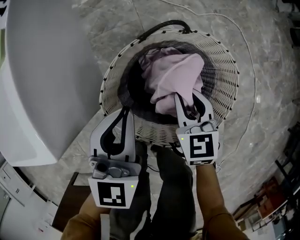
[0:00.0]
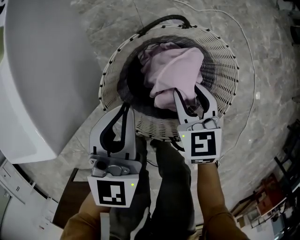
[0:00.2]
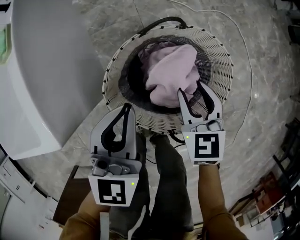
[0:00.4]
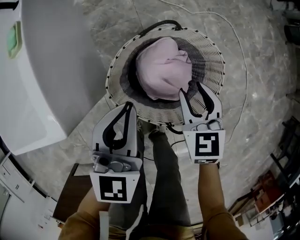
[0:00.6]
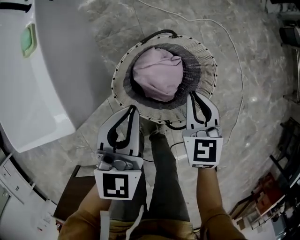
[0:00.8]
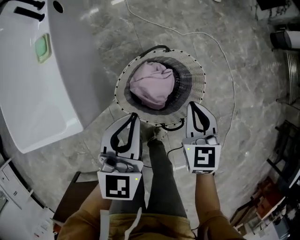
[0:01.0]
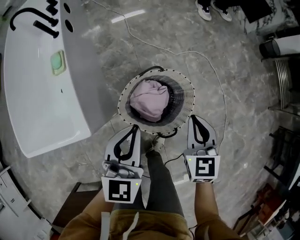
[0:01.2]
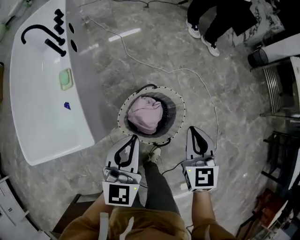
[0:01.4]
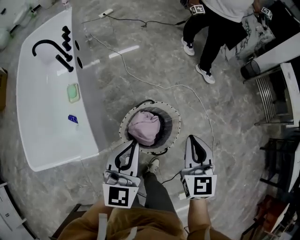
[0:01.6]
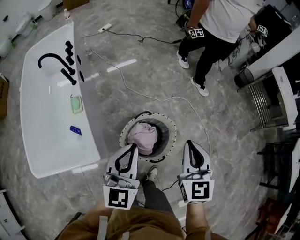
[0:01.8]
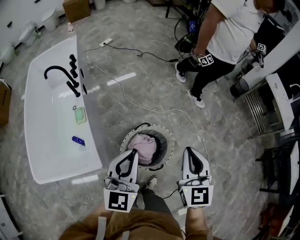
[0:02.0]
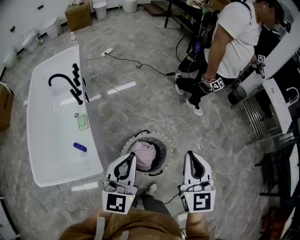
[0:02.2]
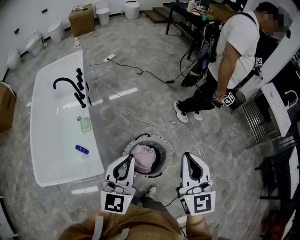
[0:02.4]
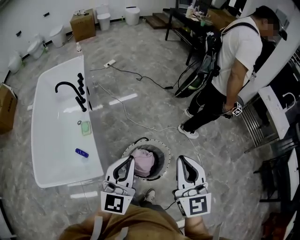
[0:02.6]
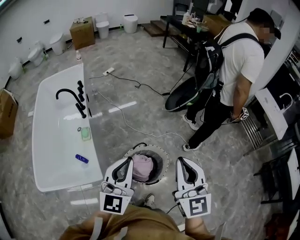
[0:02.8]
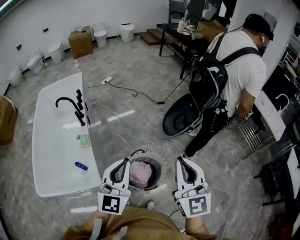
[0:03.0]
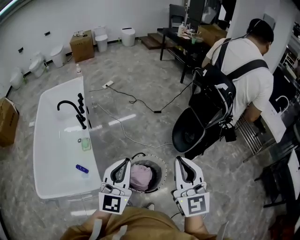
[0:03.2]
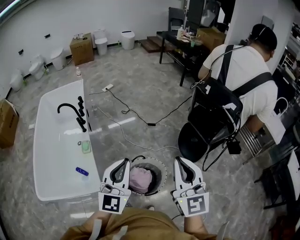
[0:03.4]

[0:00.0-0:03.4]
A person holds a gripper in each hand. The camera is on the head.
0:00.0 to 0:01.6: Both grippers move upward, about 40 cm. The right gripper swivels roughly 20 degrees.
0:01.6 to 0:03.4: The two grippers go roughly 25 cm upward. The right gripper angles its fingers upward, by approximately 30 degrees.

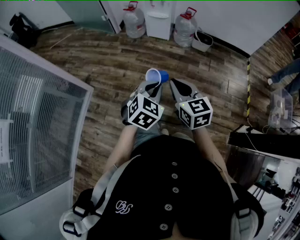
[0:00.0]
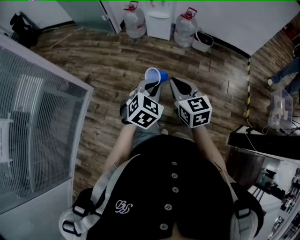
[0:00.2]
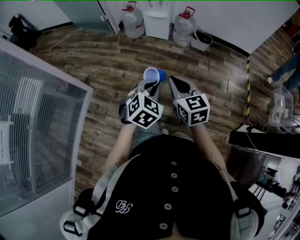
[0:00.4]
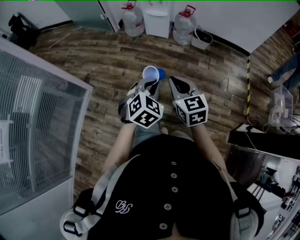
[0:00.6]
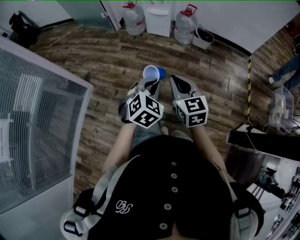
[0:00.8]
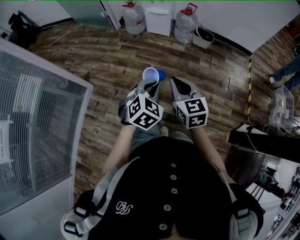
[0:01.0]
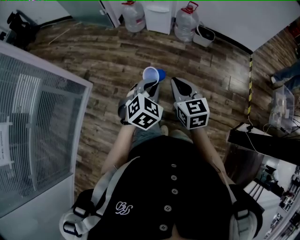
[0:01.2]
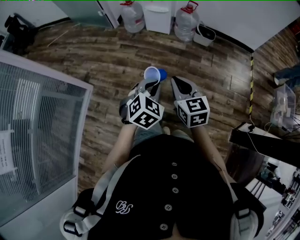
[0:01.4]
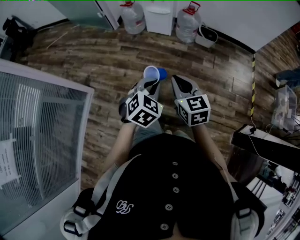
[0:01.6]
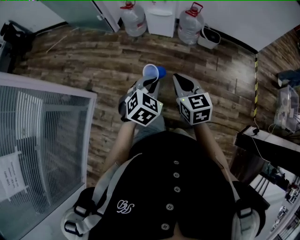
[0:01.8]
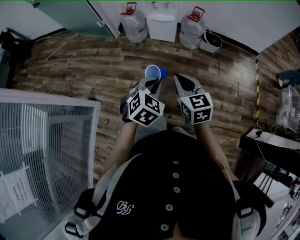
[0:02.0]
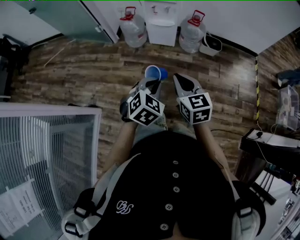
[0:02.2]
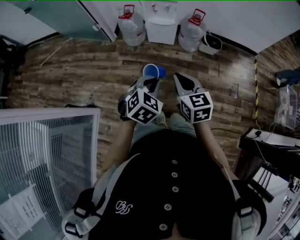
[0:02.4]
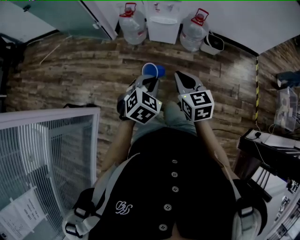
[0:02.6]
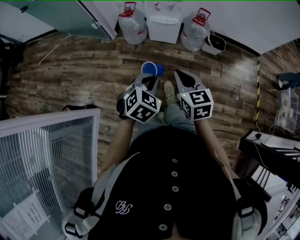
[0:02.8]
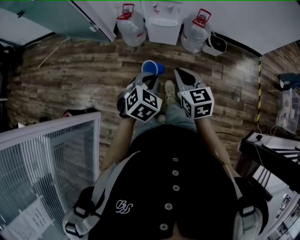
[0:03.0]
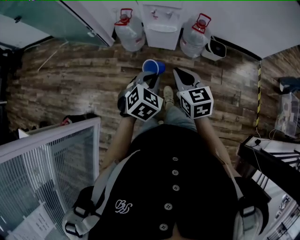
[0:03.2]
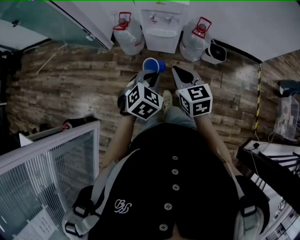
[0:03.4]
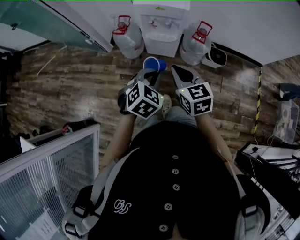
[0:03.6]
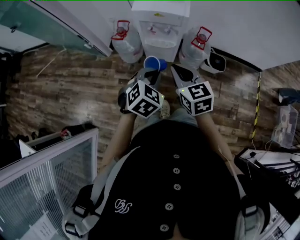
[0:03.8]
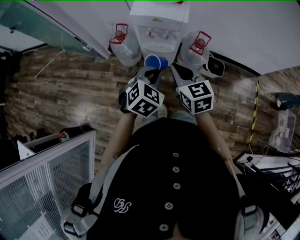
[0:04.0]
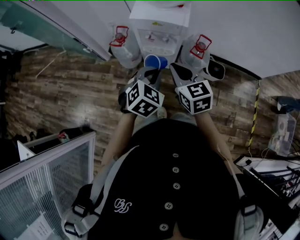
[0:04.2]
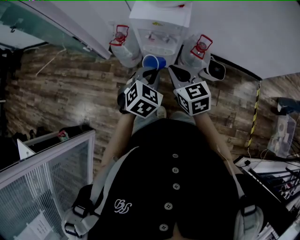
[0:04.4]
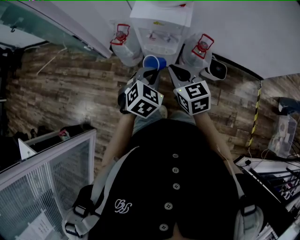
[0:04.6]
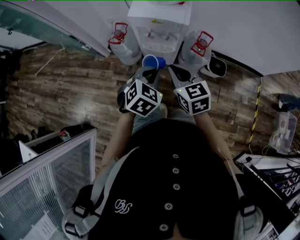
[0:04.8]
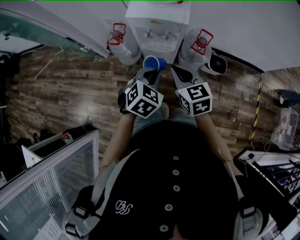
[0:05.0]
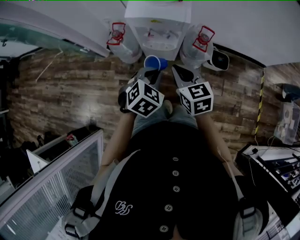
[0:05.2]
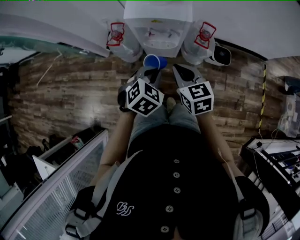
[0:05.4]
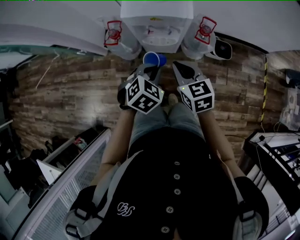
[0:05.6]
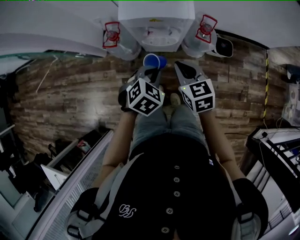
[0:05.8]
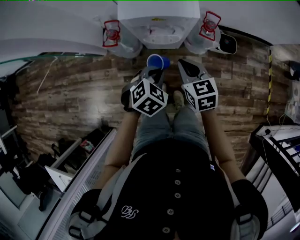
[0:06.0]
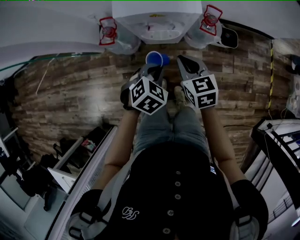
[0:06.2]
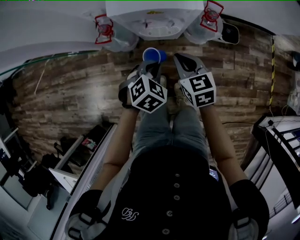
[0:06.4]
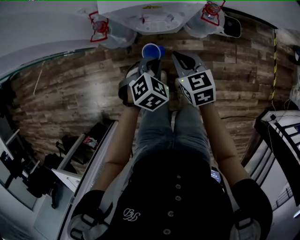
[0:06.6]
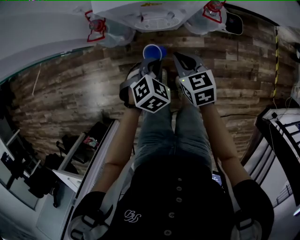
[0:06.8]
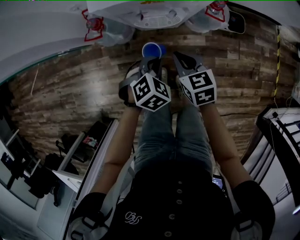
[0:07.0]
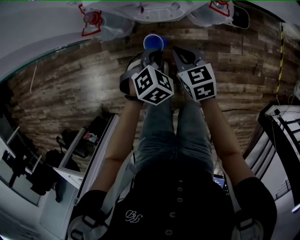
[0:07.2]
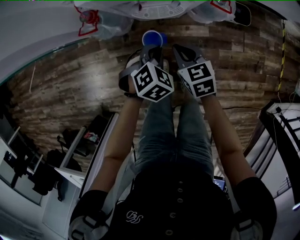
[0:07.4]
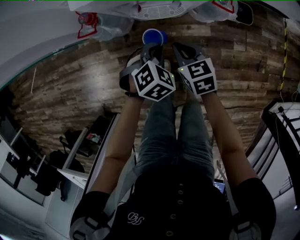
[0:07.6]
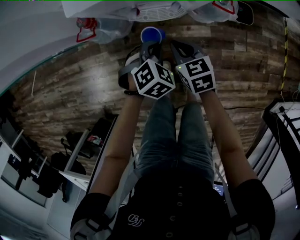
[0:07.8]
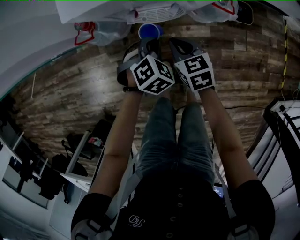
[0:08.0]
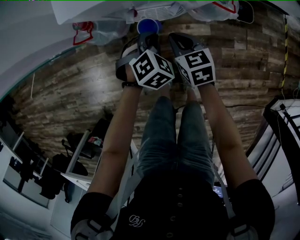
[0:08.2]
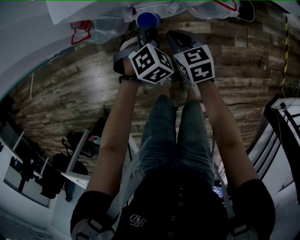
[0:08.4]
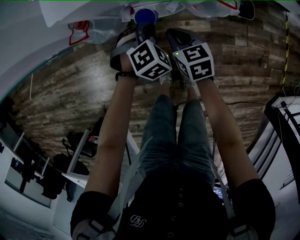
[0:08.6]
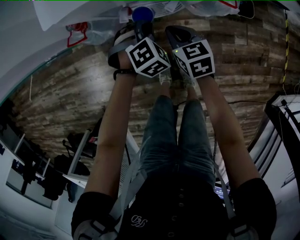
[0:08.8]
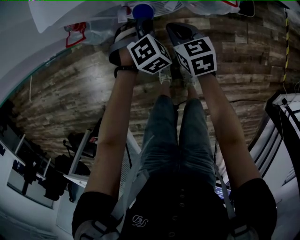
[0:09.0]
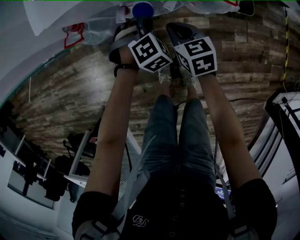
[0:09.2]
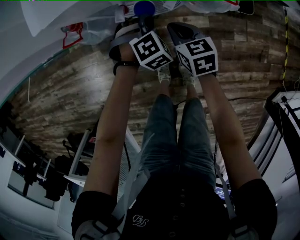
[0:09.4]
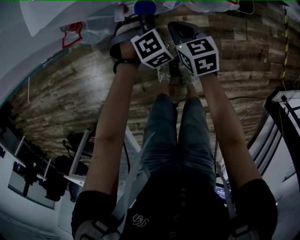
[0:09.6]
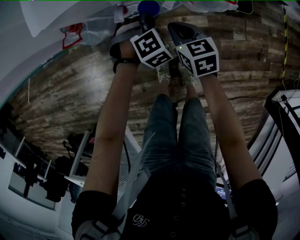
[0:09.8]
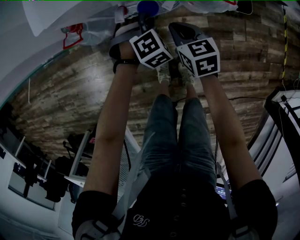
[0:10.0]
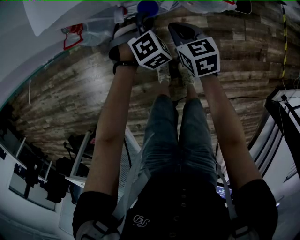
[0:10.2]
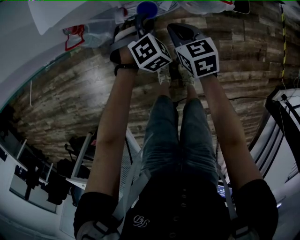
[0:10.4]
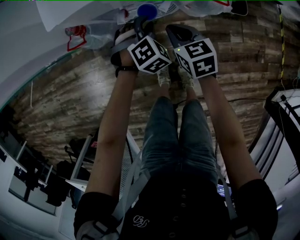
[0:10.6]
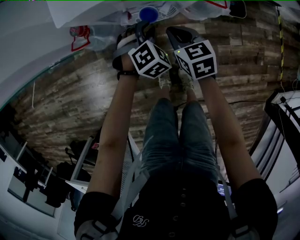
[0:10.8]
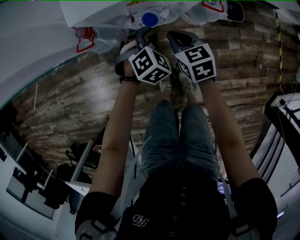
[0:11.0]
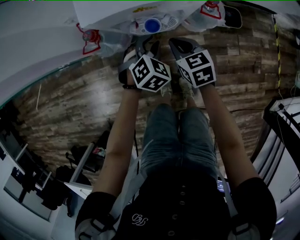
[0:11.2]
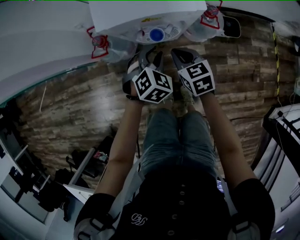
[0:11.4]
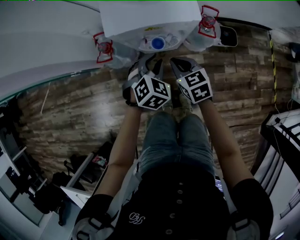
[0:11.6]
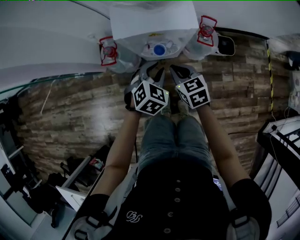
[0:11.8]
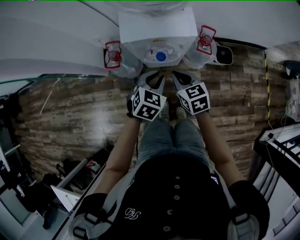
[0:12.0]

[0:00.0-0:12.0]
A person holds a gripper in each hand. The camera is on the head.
0:00.0 to 0:01.6: The grippers both shift forward by about 10 cm.
0:01.6 to 0:03.0: The grippers both shift forward by some 30 cm.
0:03.0 to 0:04.4: The grippers both shift forward by approximately 25 cm.
0:04.4 to 0:06.0: Both grippers move downward and forward, roughly 15 cm. The left gripper turns by about 20 degrees.
0:06.0 to 0:07.6: Both grippers move downward, about 20 cm.
0:07.6 to 0:09.0: The left gripper goes roughly 10 cm forward and downward; the right gripper moves forward, some 5 cm.
0:09.0 to 0:10.4: The left gripper opens.
0:10.4 to 0:12.0: The grippers both shift upward by approximately 25 cm. The left gripper turns by some 40 degrees.

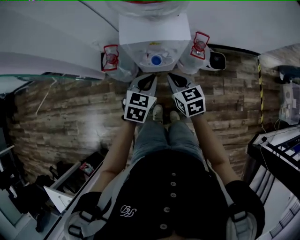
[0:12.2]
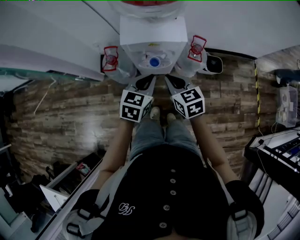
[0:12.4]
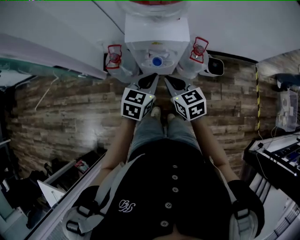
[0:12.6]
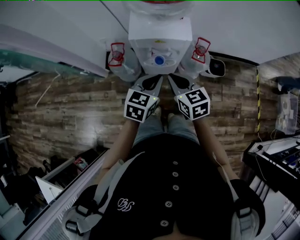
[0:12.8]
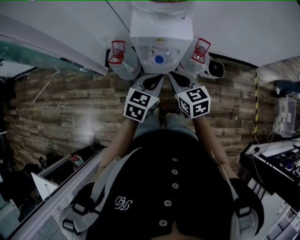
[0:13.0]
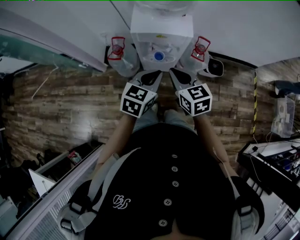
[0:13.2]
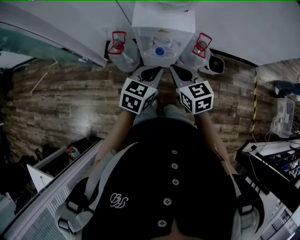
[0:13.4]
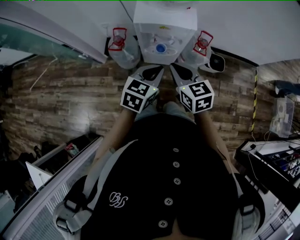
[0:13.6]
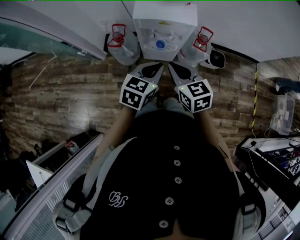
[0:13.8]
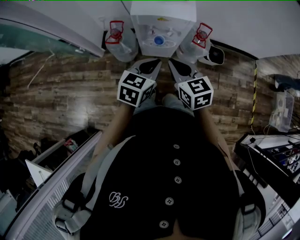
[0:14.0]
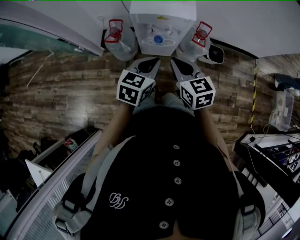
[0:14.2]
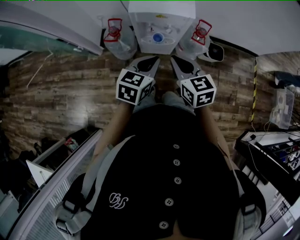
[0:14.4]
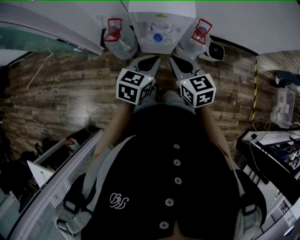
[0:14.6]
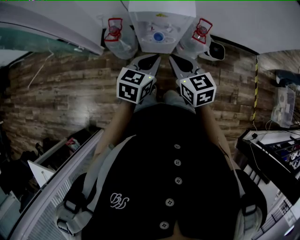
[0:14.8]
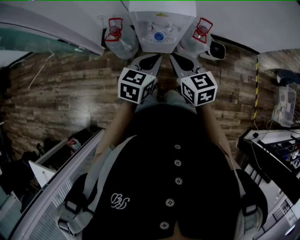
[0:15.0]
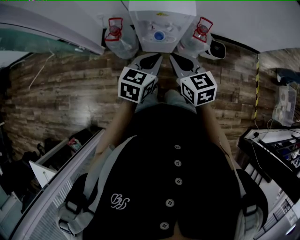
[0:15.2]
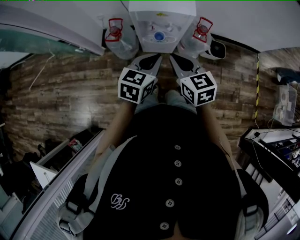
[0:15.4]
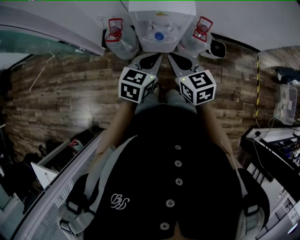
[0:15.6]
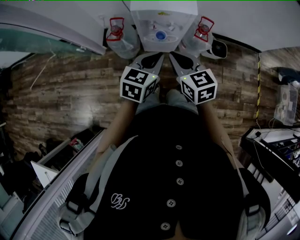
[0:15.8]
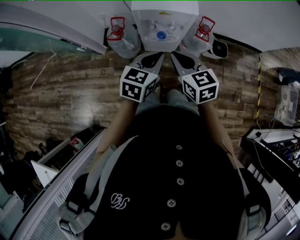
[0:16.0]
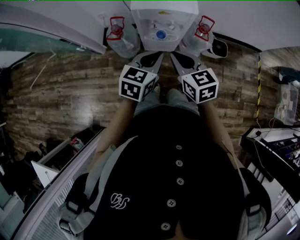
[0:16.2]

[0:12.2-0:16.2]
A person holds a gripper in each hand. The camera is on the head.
0:12.2 to 0:13.6: The right gripper goes roughly 10 cm upward and backward. The left gripper moves backward and upward, about 10 cm.
0:13.6 to 0:14.8: The grippers make only small movements.
0:14.8 to 0:16.2: The two grippers keep their place.

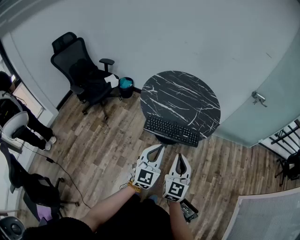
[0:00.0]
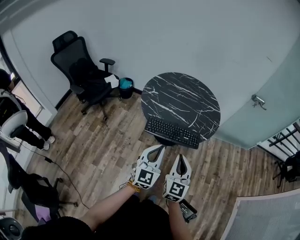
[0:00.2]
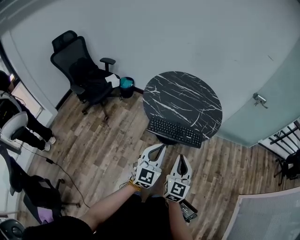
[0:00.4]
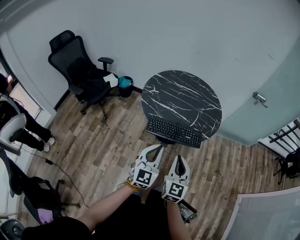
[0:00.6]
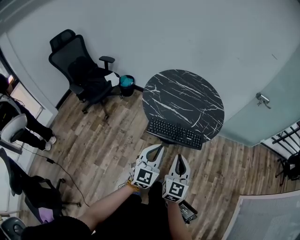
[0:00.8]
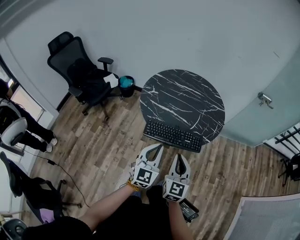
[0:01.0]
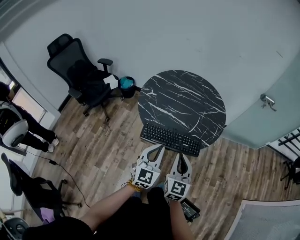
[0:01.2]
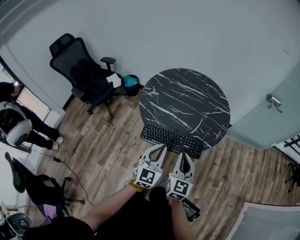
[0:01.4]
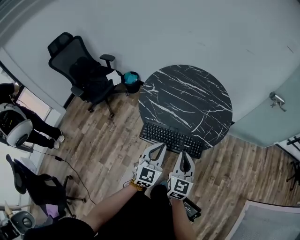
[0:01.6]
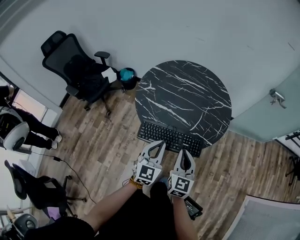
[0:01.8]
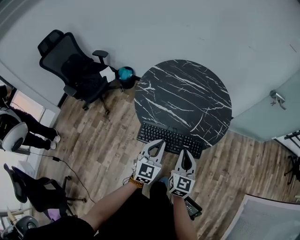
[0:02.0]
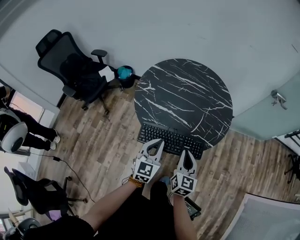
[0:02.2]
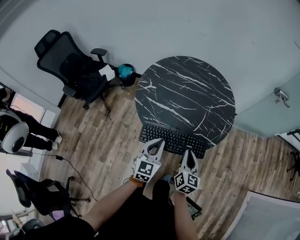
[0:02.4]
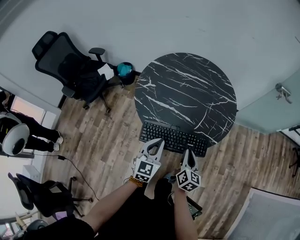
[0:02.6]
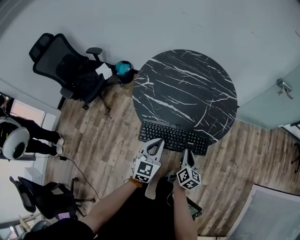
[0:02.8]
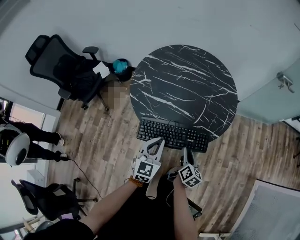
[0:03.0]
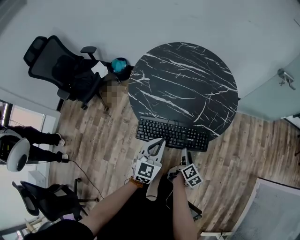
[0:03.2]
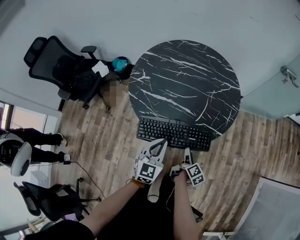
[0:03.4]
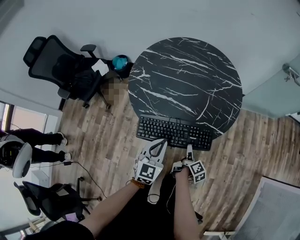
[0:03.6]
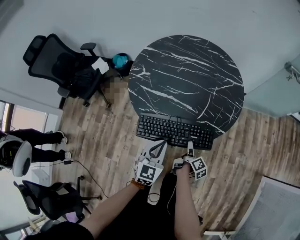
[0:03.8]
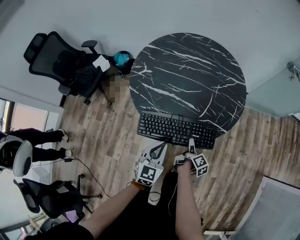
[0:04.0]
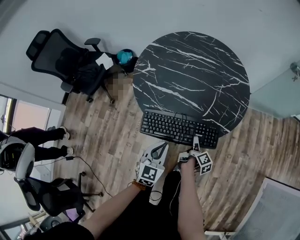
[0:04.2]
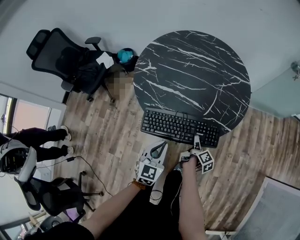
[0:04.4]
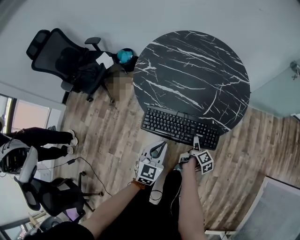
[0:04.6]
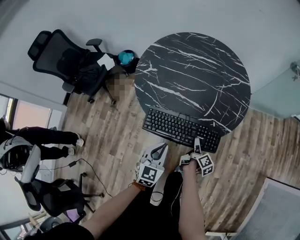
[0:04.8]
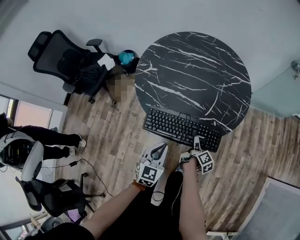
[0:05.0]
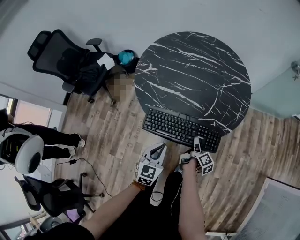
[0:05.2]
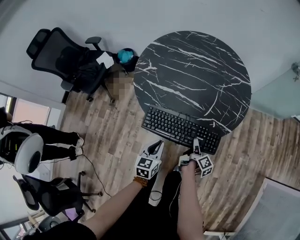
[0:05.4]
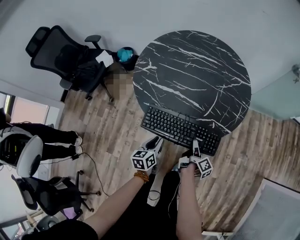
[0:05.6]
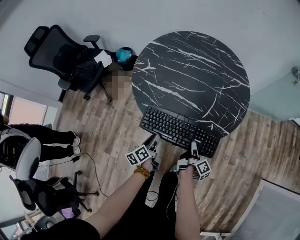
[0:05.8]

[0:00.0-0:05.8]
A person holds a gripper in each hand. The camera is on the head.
0:00.0 to 0:01.4: The two grippers go approximately 15 cm forward.
0:01.4 to 0:02.8: The right gripper moves downward and forward, roughly 20 cm, and rotates approximately 40 degrees, while the left gripper travels downward and forward by approximately 10 cm.
0:02.8 to 0:04.4: The left gripper goes about 10 cm downward. The right gripper travels downward by some 15 cm, rolls clockwise, seen from behind, by roughly 50 degrees, and opens its fingers.
0:04.4 to 0:05.8: The right gripper closes; the left gripper moves downward and to the left, about 15 cm, rotates around the line of its fingers by some 70 degrees, counterclockwise from behind, and opens its fingers.
